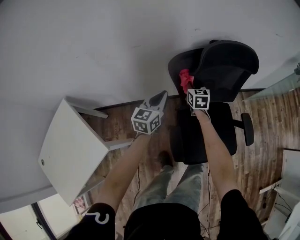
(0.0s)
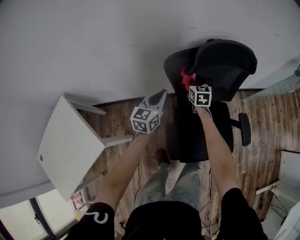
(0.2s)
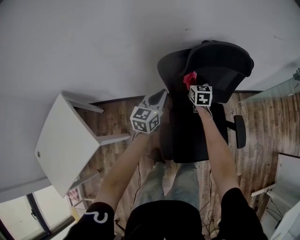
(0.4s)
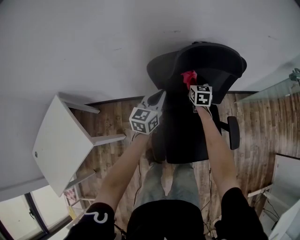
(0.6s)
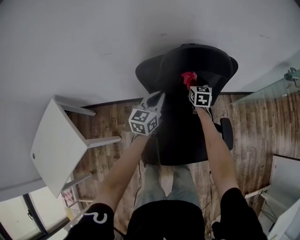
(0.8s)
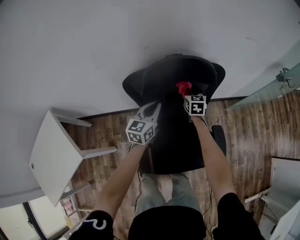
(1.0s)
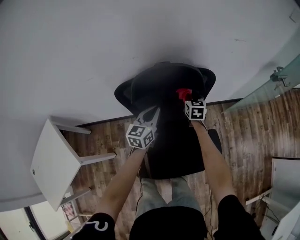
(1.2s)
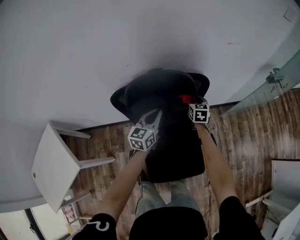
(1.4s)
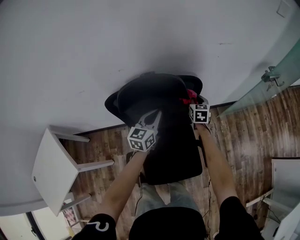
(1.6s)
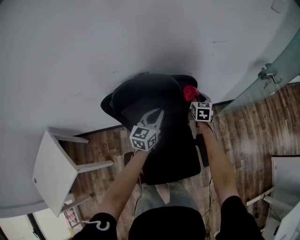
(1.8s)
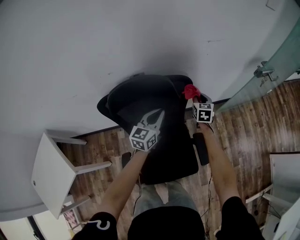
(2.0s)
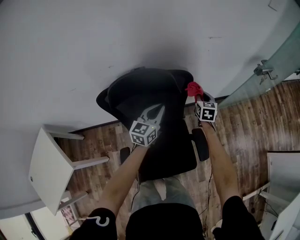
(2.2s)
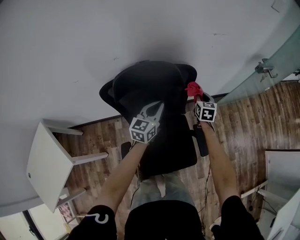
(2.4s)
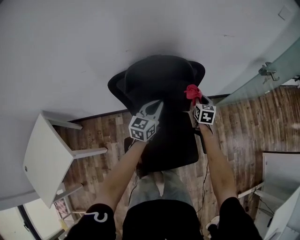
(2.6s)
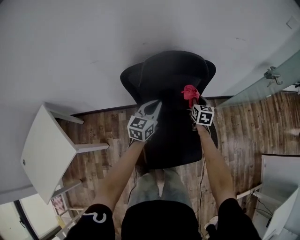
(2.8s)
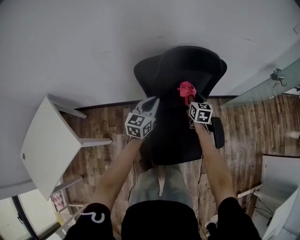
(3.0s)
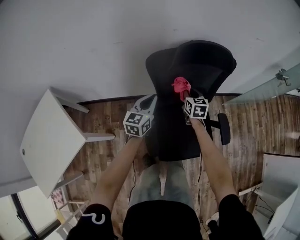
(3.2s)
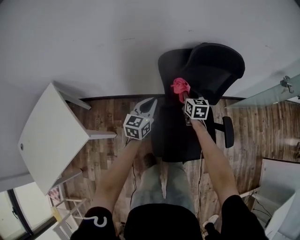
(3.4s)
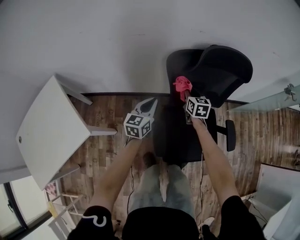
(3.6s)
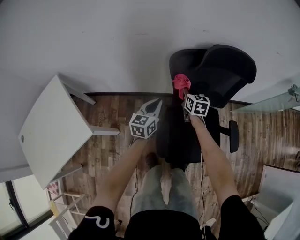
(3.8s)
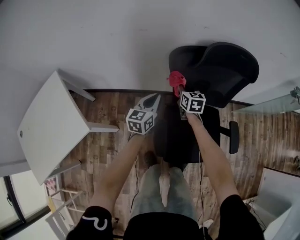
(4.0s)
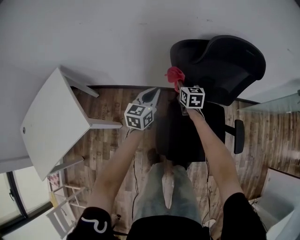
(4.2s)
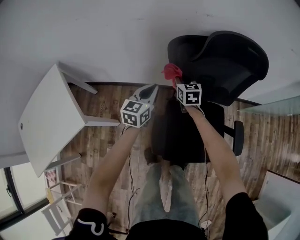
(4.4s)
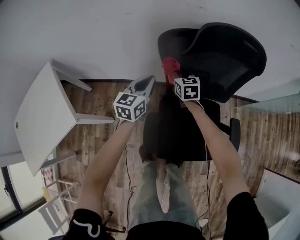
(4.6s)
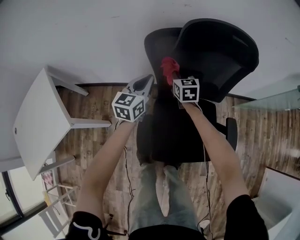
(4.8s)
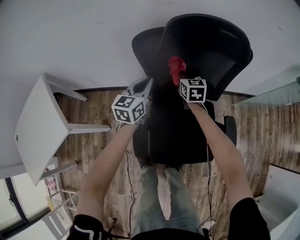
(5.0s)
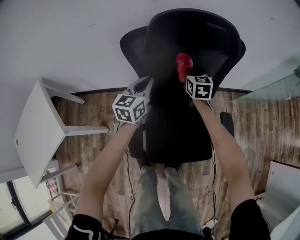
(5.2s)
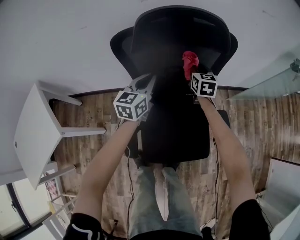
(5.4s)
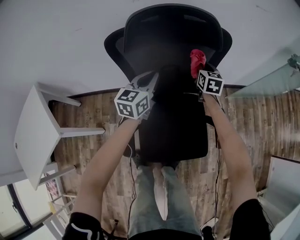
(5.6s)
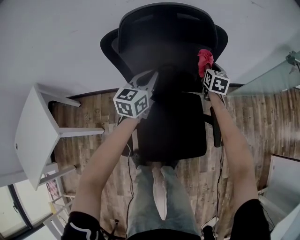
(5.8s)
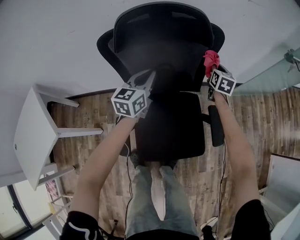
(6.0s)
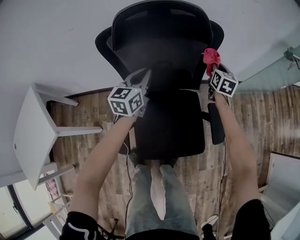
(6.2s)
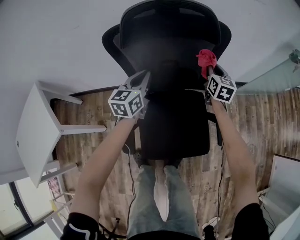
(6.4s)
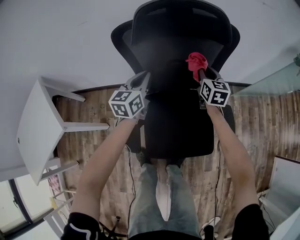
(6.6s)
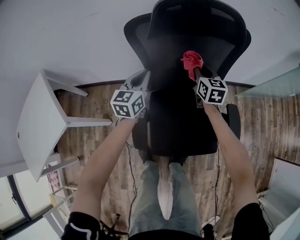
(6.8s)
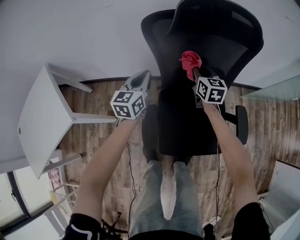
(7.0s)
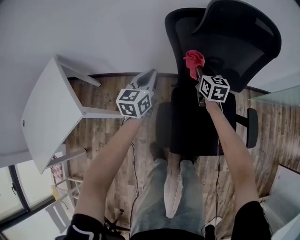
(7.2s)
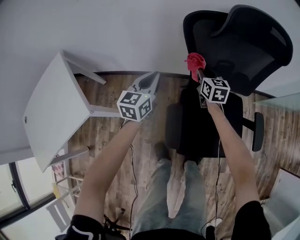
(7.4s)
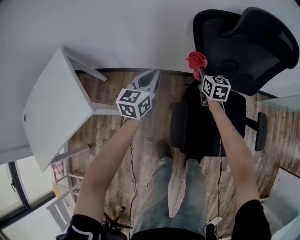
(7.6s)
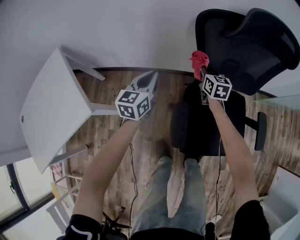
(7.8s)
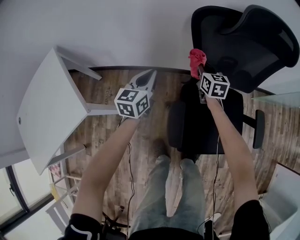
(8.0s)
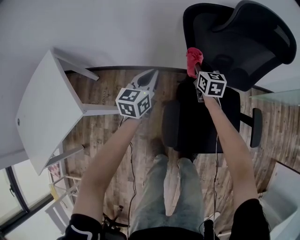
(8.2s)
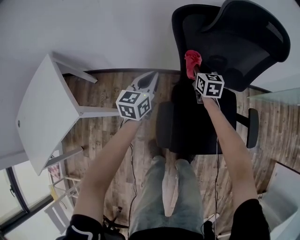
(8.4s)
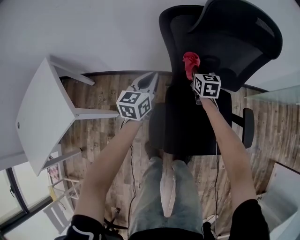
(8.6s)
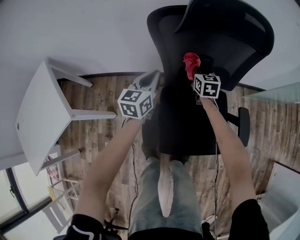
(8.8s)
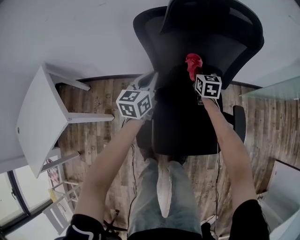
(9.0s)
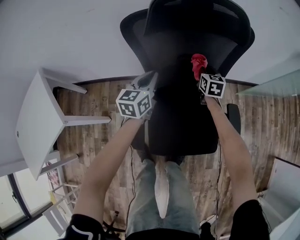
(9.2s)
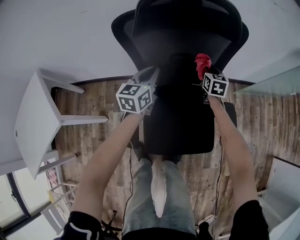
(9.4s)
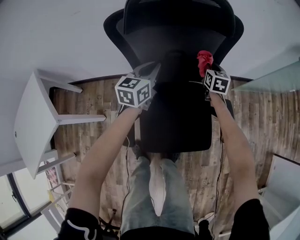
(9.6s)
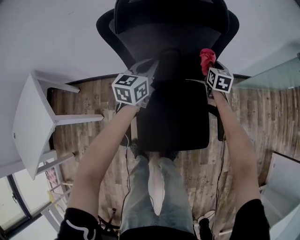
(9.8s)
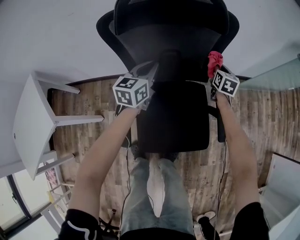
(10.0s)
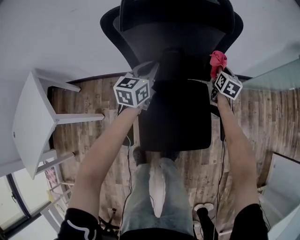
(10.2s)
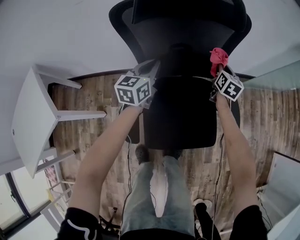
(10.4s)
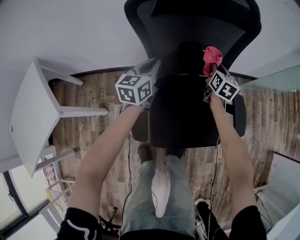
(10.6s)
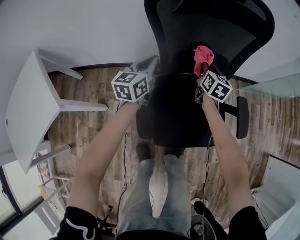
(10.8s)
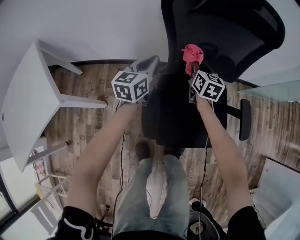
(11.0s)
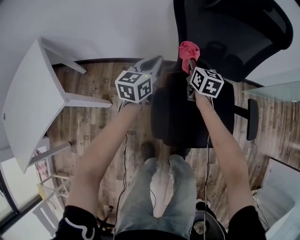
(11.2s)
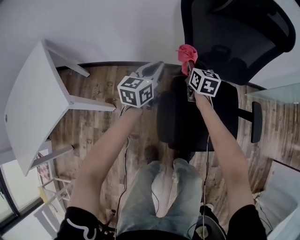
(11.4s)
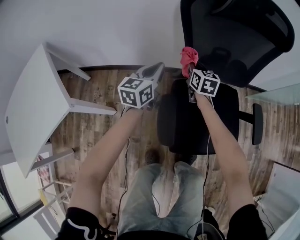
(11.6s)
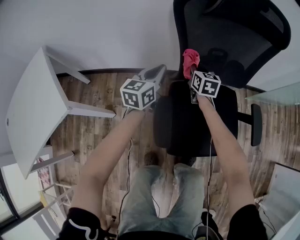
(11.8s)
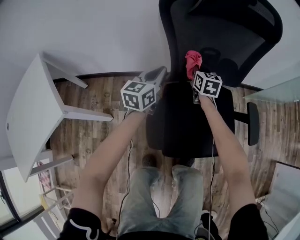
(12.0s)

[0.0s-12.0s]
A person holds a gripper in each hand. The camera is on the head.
0.0s to 1.6s: Both grippers travel together to the right, roughly 30 cm.
1.6s to 3.0s: The left gripper is displaced to the left and backward by roughly 20 cm, while the right gripper moves backward and to the left, some 20 cm.
3.0s to 4.4s: The right gripper shifts about 25 cm to the left, and swivels about 20 degrees. Meanwhile the left gripper goes approximately 15 cm to the left and downward.
4.4s to 6.0s: The right gripper travels to the right by some 40 cm, and rotates roughly 30 degrees, while the left gripper is displaced to the right by roughly 25 cm.
6.0s to 7.6s: Both grippers move to the left, about 40 cm. The right gripper changes its angle by roughly 30 degrees.
7.6s to 9.0s: The grippers both shift to the right by about 20 cm.
9.0s to 10.4s: The left gripper travels to the right by some 5 cm, while the right gripper goes about 20 cm to the right, and changes its angle by about 20 degrees.
10.4s to 12.0s: The left gripper shifts some 15 cm to the left, downward and backward, while the right gripper is displaced to the left by some 25 cm.

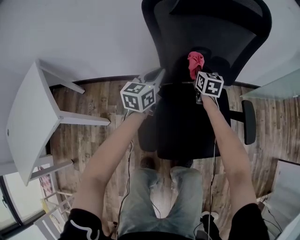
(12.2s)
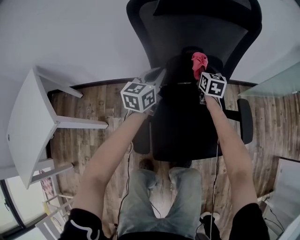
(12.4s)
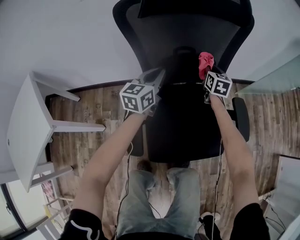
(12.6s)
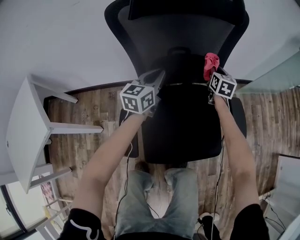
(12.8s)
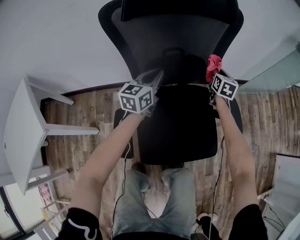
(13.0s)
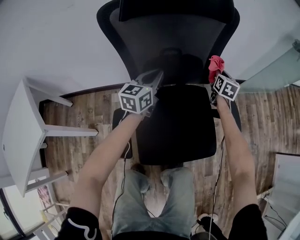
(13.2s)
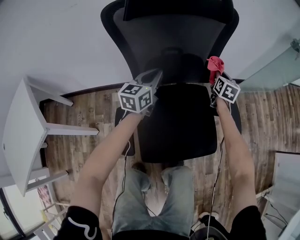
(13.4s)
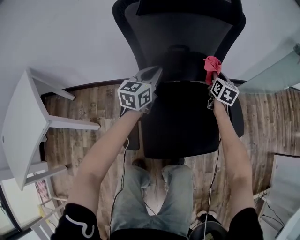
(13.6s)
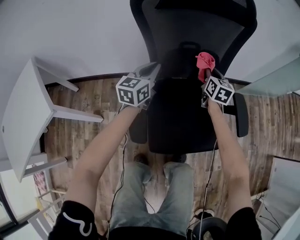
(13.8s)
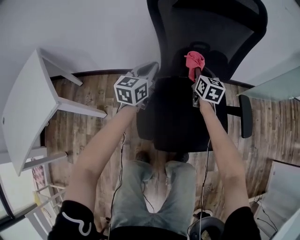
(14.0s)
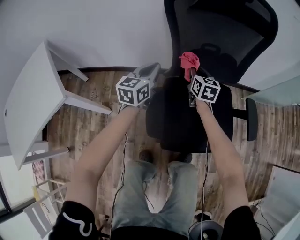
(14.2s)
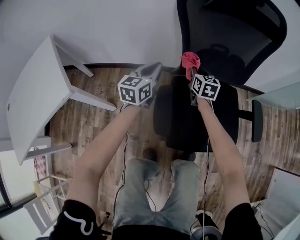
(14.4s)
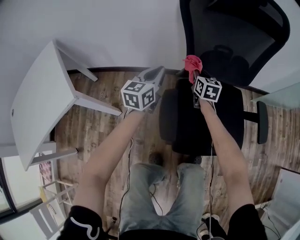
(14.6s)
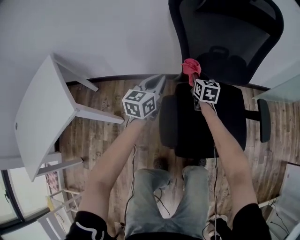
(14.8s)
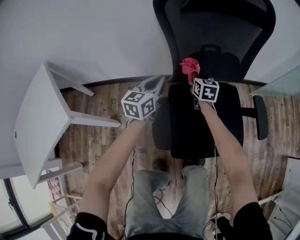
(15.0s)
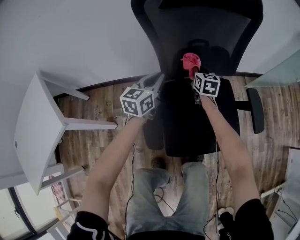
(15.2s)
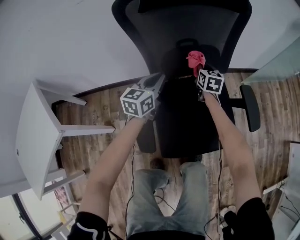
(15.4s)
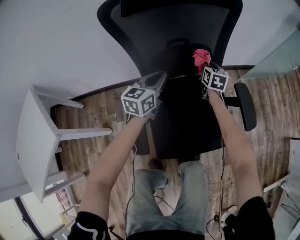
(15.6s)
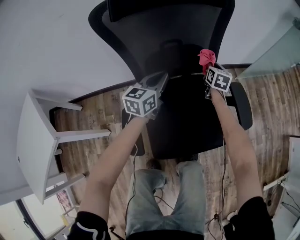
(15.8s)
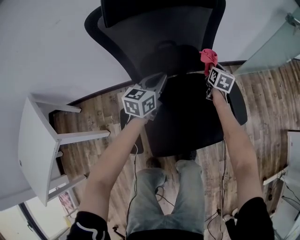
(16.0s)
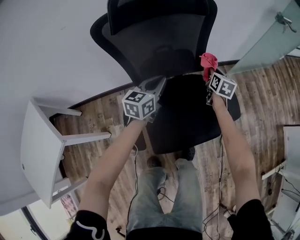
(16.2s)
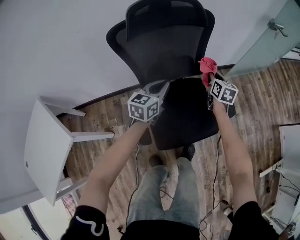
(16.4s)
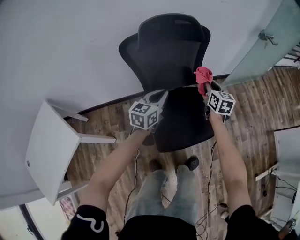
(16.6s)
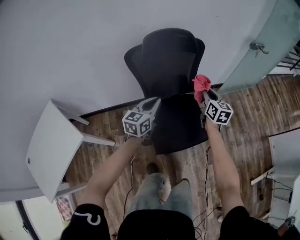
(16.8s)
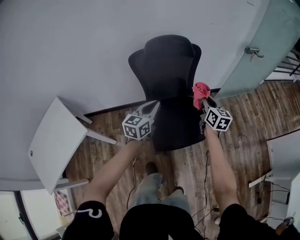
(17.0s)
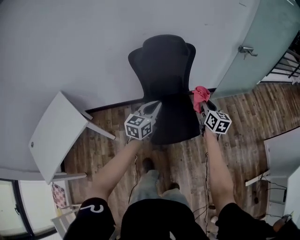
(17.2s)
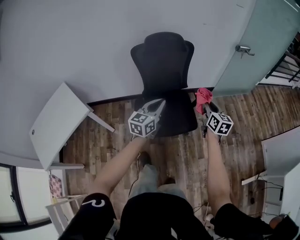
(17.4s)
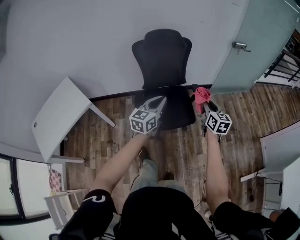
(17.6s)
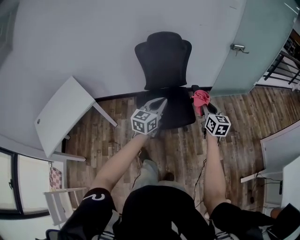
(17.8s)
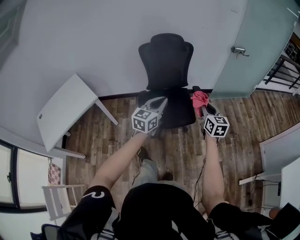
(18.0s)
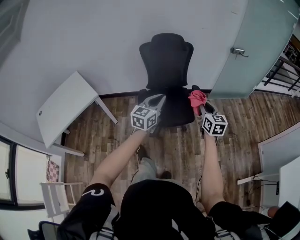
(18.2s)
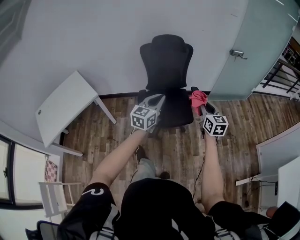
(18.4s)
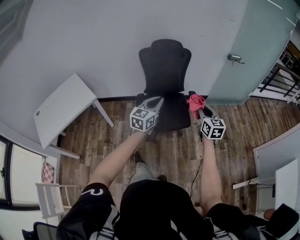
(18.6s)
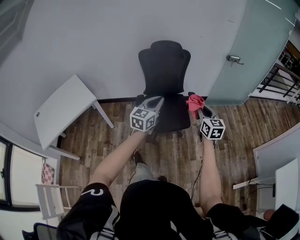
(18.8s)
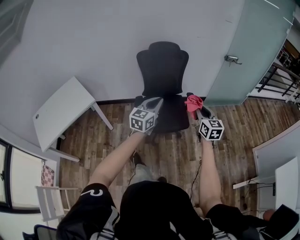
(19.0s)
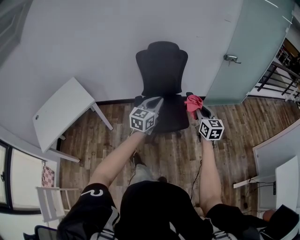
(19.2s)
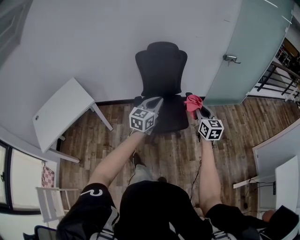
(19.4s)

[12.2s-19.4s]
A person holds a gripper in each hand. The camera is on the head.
12.2s to 13.6s: The left gripper heads to the right, covering approximately 10 cm. The right gripper is displaced to the right by about 20 cm.
13.6s to 15.0s: The right gripper shifts roughly 25 cm to the left. Meanwhile the left gripper moves to the left and backward, some 15 cm.
15.0s to 16.6s: The two grippers go some 30 cm upward and to the right.
16.6s to 18.0s: Both grippers are carried backward, approximately 40 cm. Both grippers move upward, approximately 20 cm.
18.0s to 19.4s: The right gripper moves roughly 5 cm.

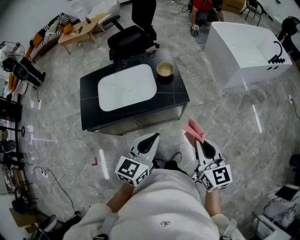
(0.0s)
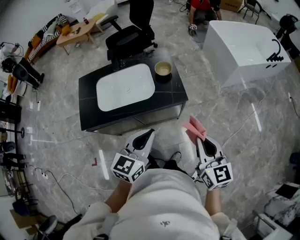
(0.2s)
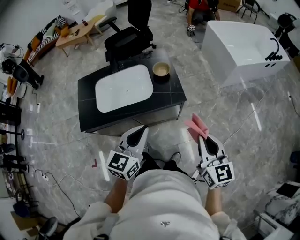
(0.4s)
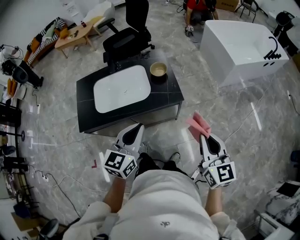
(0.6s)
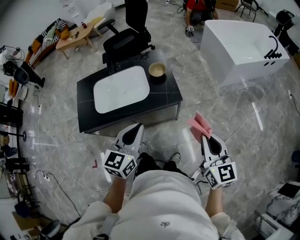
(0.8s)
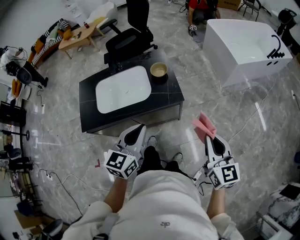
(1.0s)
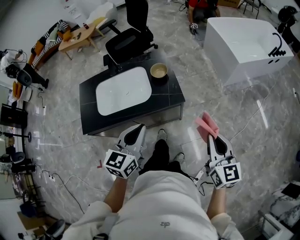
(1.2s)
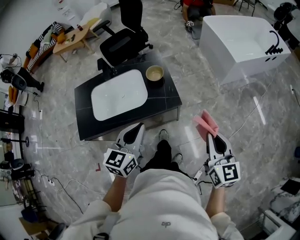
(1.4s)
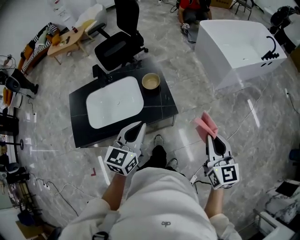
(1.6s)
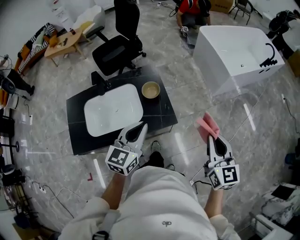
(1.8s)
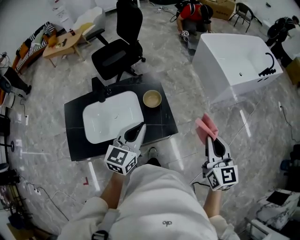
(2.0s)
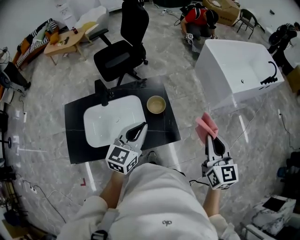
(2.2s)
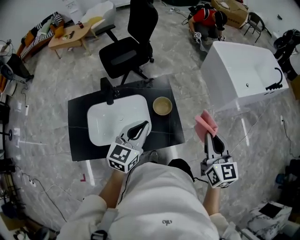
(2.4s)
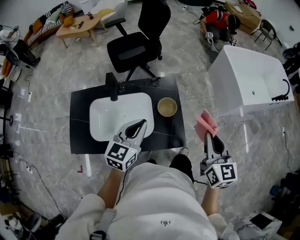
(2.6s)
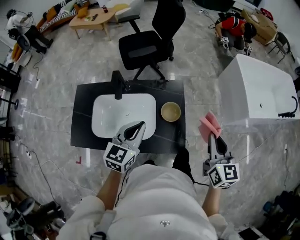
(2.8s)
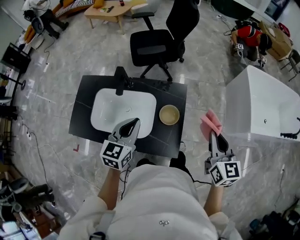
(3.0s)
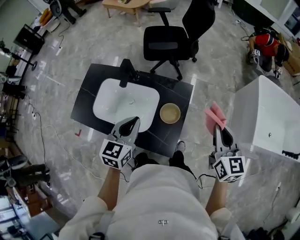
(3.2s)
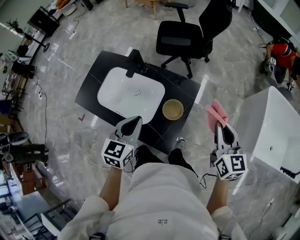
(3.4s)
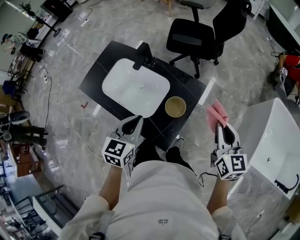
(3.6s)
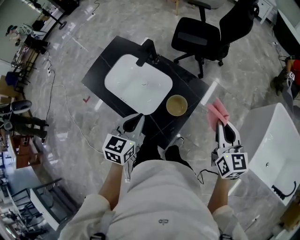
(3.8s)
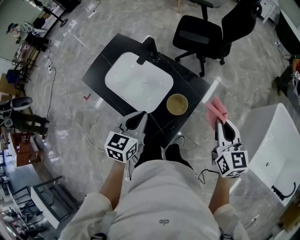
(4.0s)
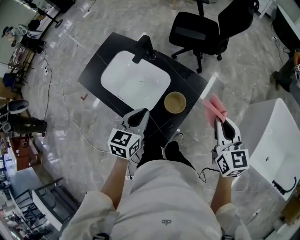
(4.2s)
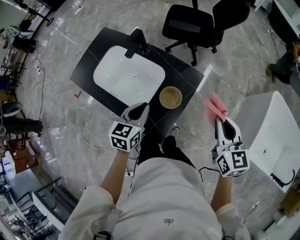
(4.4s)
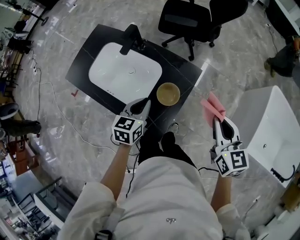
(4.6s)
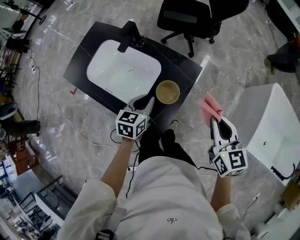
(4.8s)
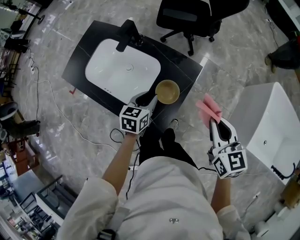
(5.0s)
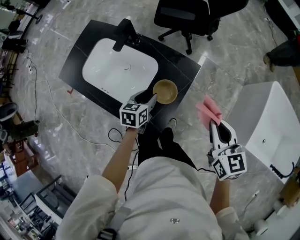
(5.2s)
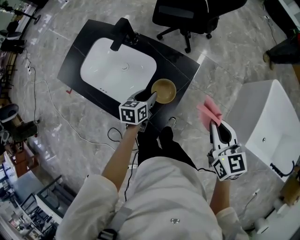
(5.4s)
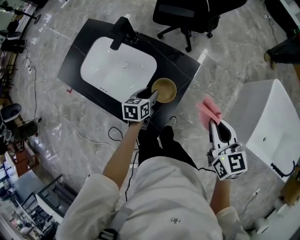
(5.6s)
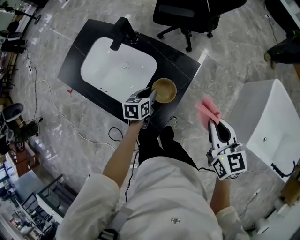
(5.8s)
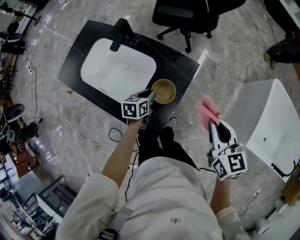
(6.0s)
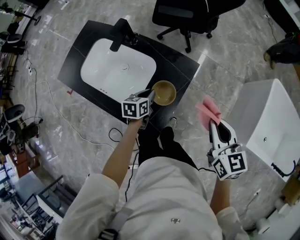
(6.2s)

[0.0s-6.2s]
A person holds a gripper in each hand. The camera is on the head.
0.0s to 1.6s: The right gripper is displaced forward and to the right by roughly 15 cm. The left gripper shifts approximately 15 cm forward.
1.6s to 3.2s: The right gripper changes place by approximately 40 cm, and turns by approximately 30 degrees. Meanwhile the left gripper changes place by approximately 20 cm, and changes its angle by approximately 40 degrees.
3.2s to 4.6s: The right gripper goes some 5 cm downward, and changes its angle by some 20 degrees, while the left gripper shifts some 15 cm downward and to the right, and swivels approximately 20 degrees.
4.6s to 6.2s: The left gripper travels downward by some 15 cm, and opens and closes again.
